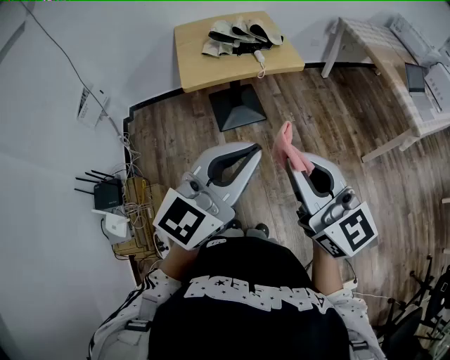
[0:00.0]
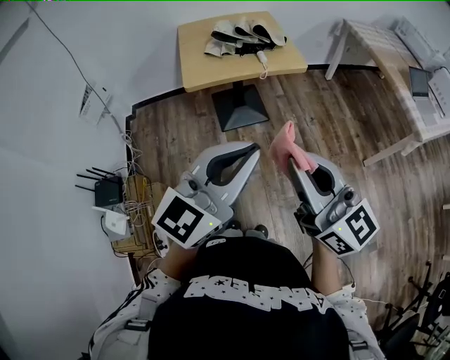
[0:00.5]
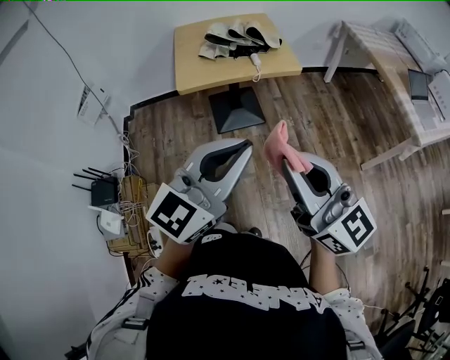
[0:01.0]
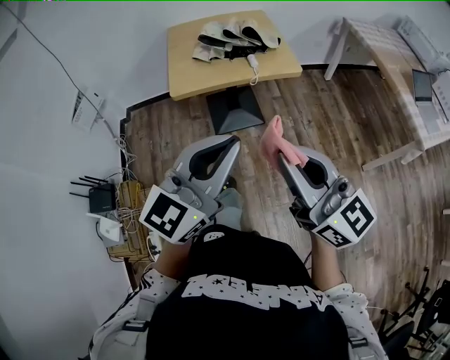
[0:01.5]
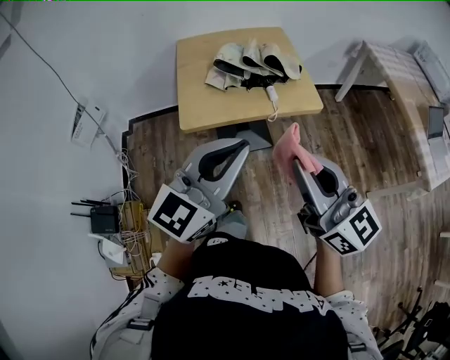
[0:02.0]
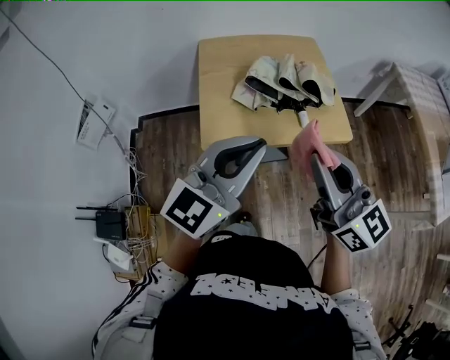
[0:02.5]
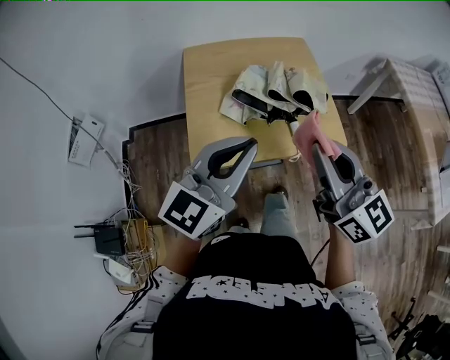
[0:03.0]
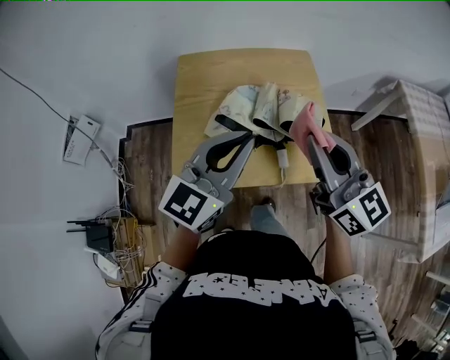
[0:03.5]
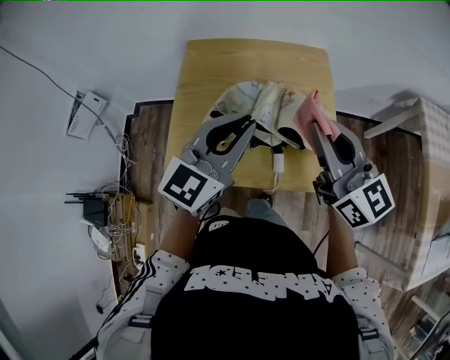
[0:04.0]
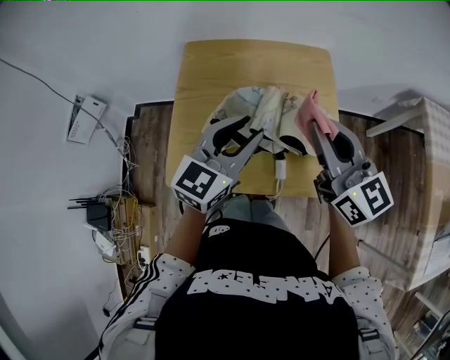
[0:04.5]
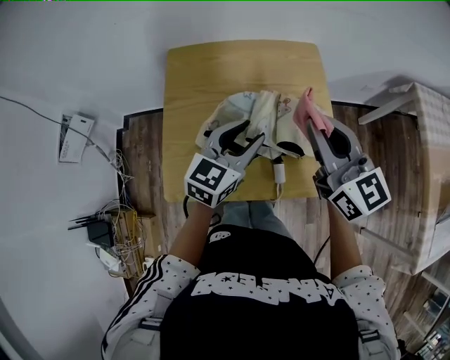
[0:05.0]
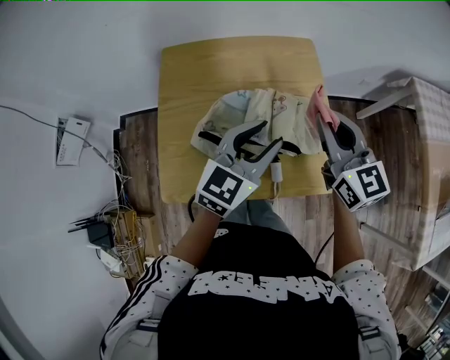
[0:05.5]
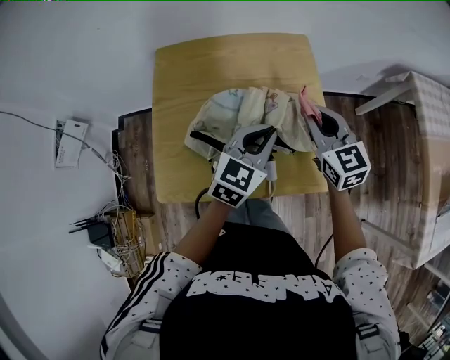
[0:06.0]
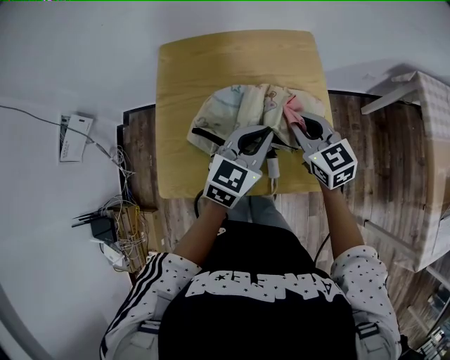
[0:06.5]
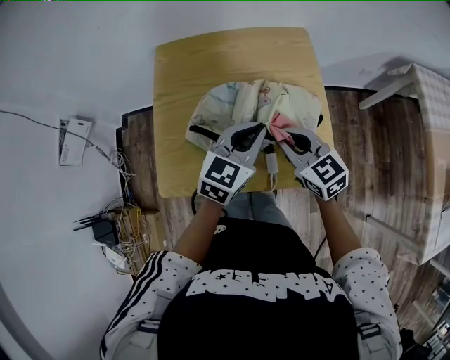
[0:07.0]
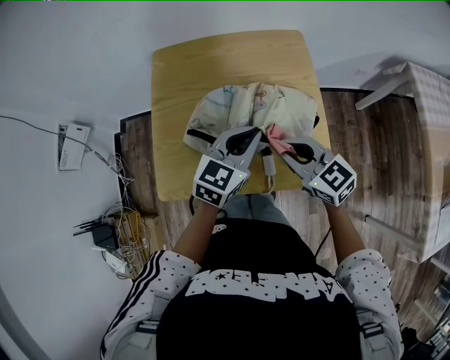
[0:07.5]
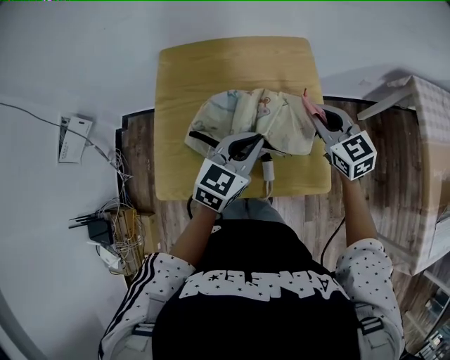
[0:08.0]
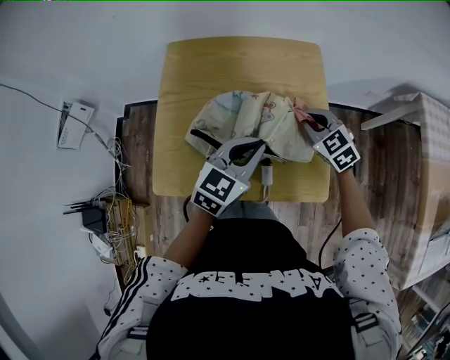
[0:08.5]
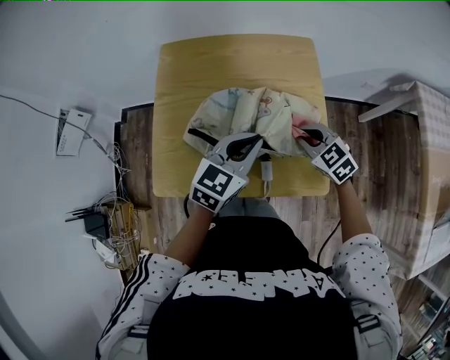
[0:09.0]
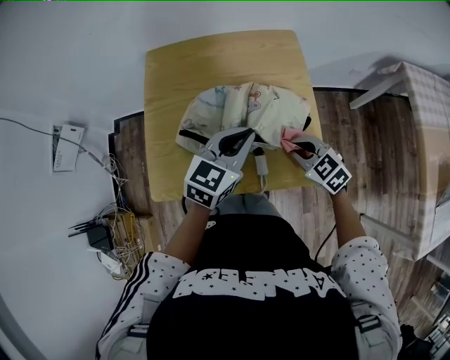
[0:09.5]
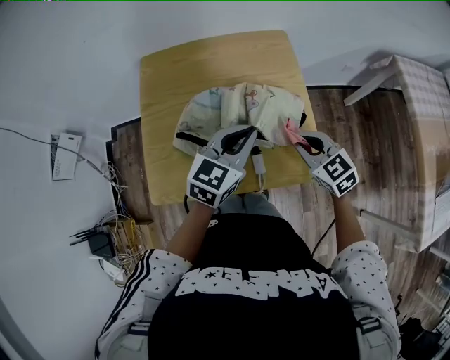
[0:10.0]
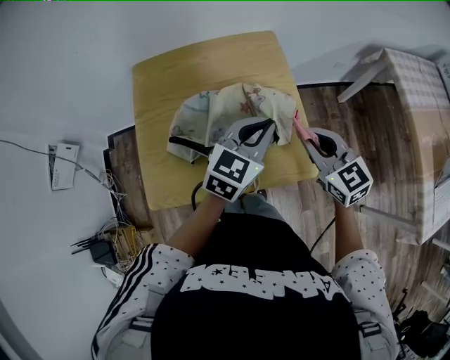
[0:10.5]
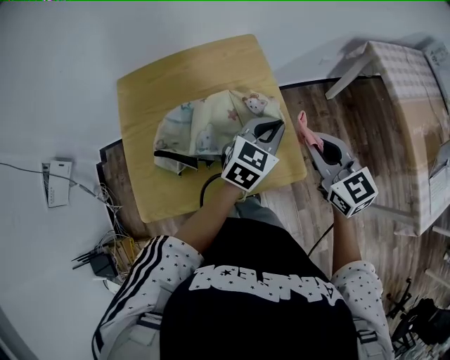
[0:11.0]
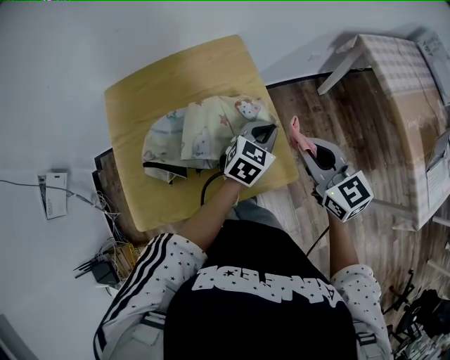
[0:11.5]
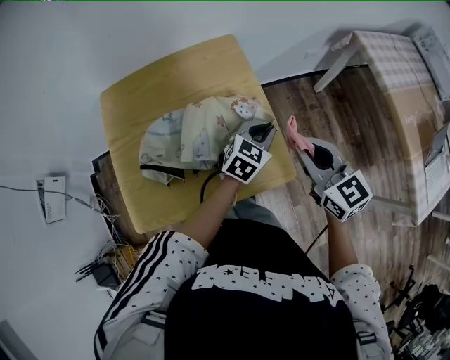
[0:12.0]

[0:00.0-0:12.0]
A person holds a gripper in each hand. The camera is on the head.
0:00.0 to 0:02.0: The two grippers go some 25 cm forward.
0:02.0 to 0:04.0: The two grippers go roughly 40 cm forward.
0:04.0 to 0:06.0: The left gripper travels downward, to the right and forward by about 15 cm, changes its angle by about 20 degrees, and opens and closes again; the right gripper is displaced downward and forward by roughly 20 cm, and swivels some 30 degrees.
0:06.0 to 0:08.0: The right gripper moves about 10 cm backward and comes back.
0:08.0 to 0:10.0: The right gripper heads backward and downward, covering about 10 cm.
0:10.0 to 0:12.0: The right gripper travels upward and to the right by some 15 cm, and rotates approximately 30 degrees, while the left gripper moves to the right and downward, about 20 cm, and turns by about 20 degrees.

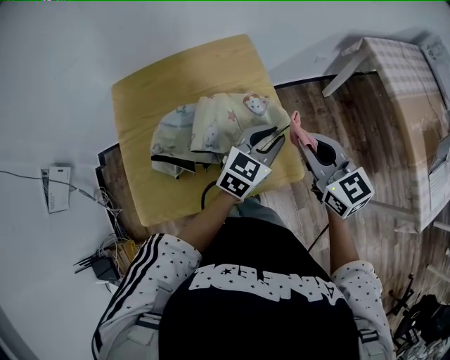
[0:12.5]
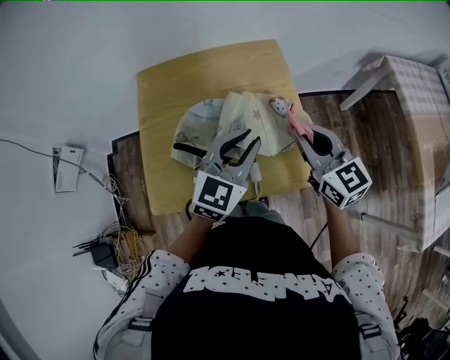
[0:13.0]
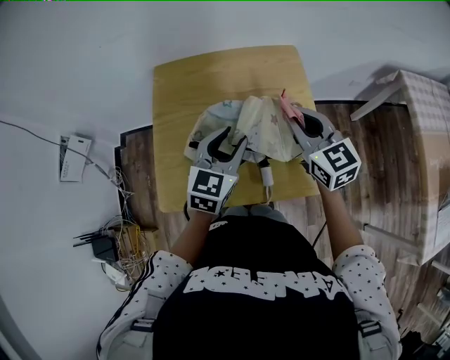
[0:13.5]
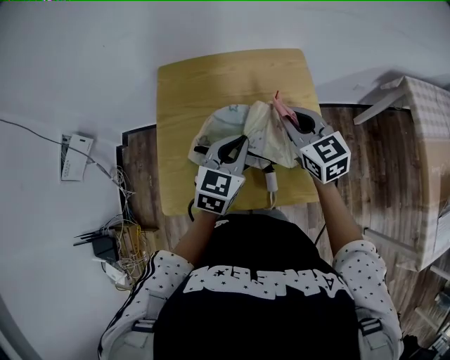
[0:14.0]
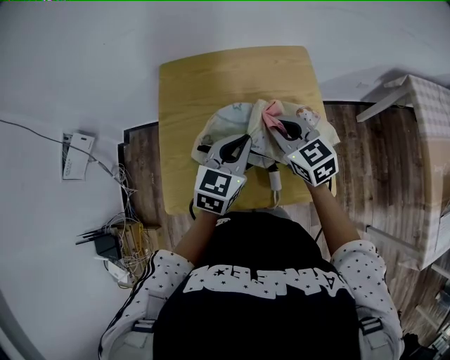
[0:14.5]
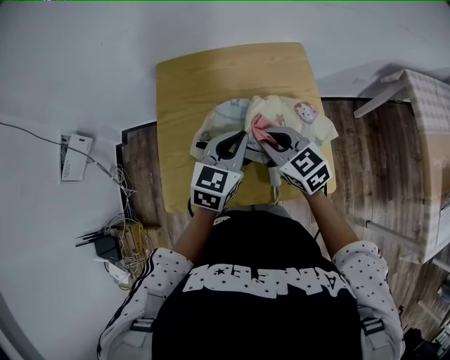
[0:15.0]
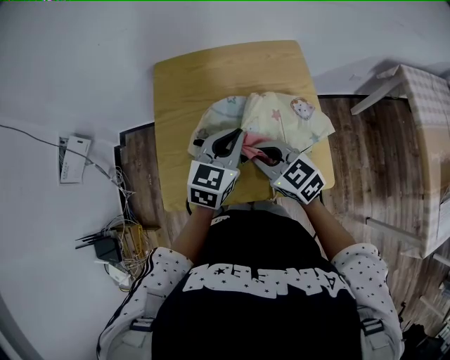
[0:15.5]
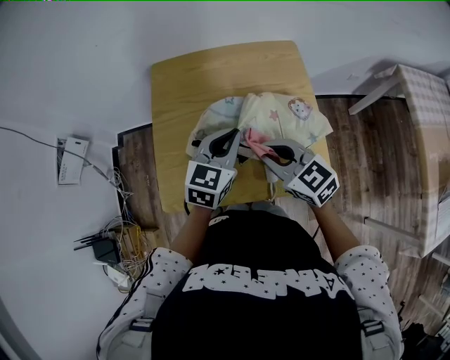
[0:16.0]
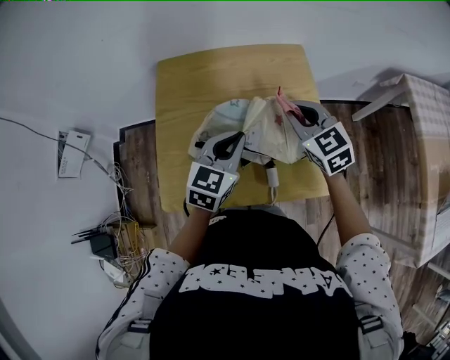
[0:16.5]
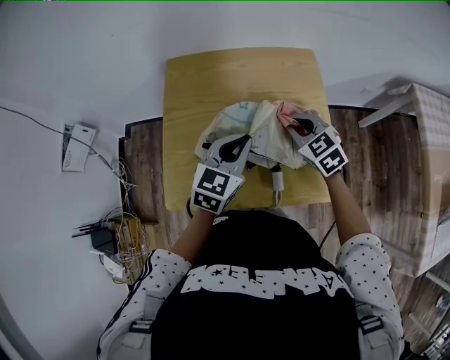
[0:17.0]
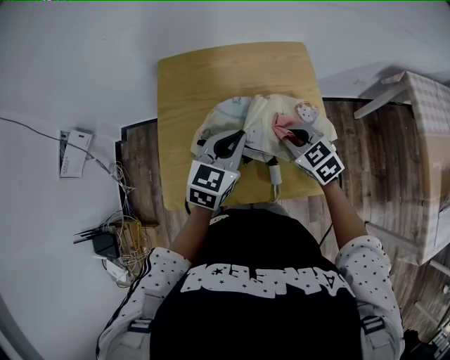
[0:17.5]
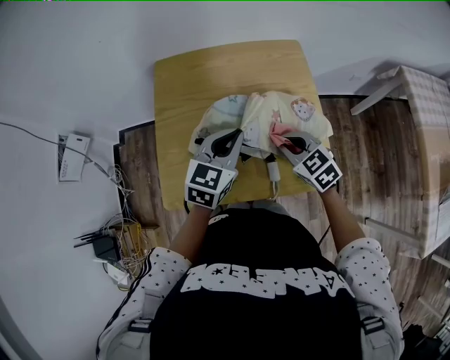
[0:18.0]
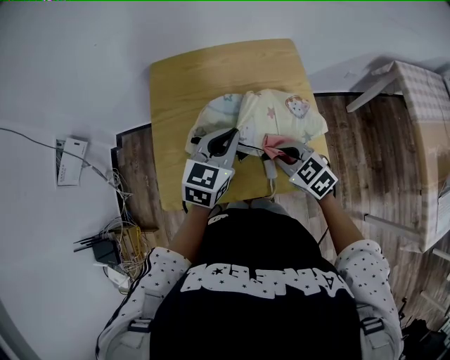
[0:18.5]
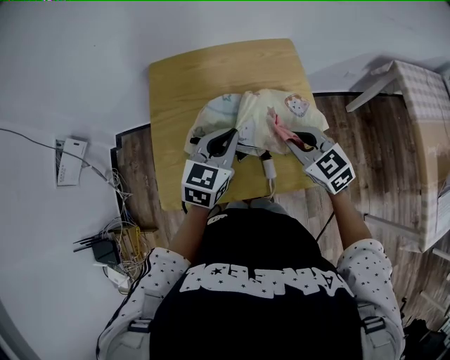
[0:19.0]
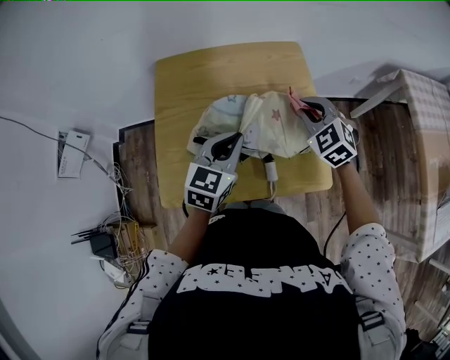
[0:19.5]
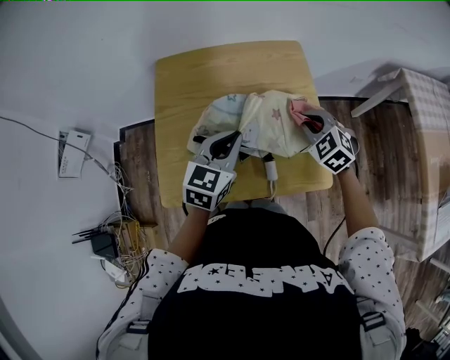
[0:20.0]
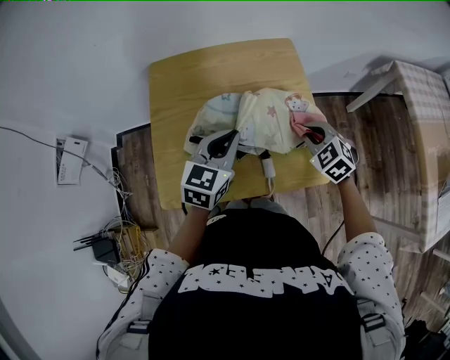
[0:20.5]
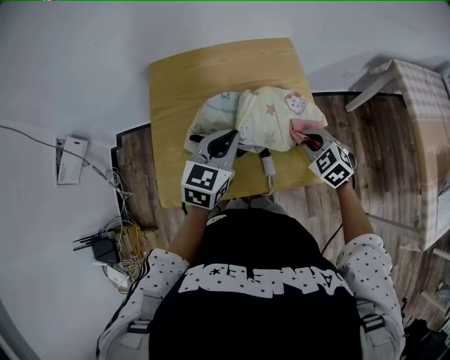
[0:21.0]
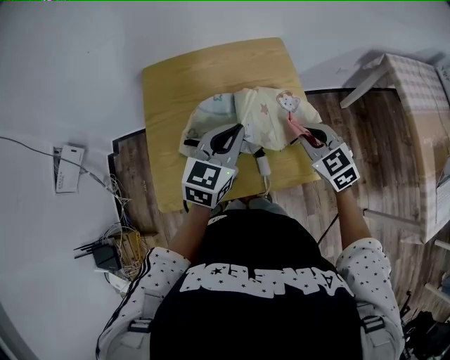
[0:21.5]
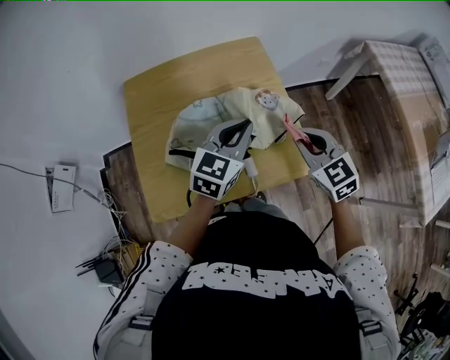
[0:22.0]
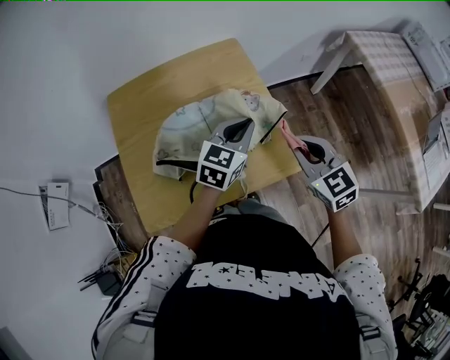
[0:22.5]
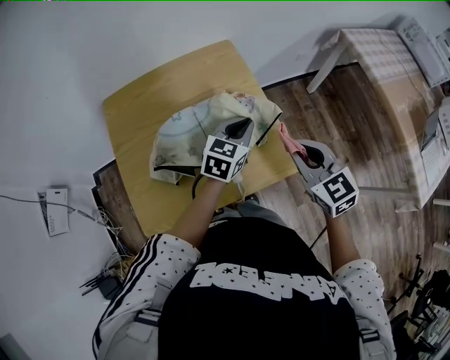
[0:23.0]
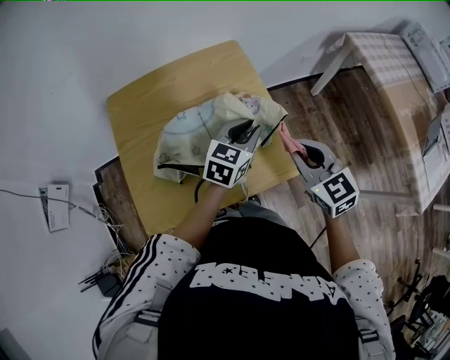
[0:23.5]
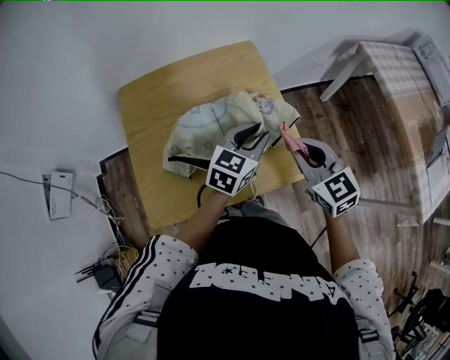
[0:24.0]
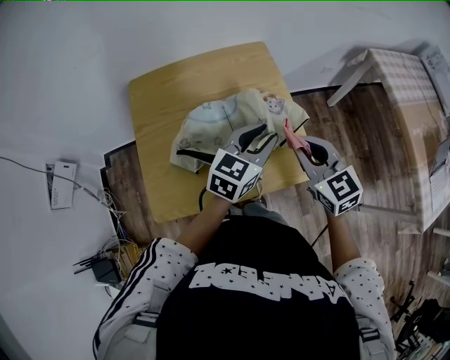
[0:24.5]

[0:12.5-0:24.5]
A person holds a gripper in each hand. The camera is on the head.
0:12.5 to 0:14.5: The left gripper heads to the left, covering approximately 20 cm, and swivels about 30 degrees. The right gripper travels to the left and forward by roughly 20 cm.
0:16.5 to 0:18.5: The right gripper is displaced backward and downward by roughly 15 cm.
0:18.5 to 0:20.5: The right gripper moves to the right and forward, roughly 10 cm, and swivels some 20 degrees.
0:20.5 to 0:22.5: The left gripper shifts roughly 15 cm to the right, while the right gripper shifts about 15 cm upward, backward and to the right, and rotates approximately 30 degrees.
0:22.5 to 0:24.5: The left gripper opens up. Meanwhile the right gripper is displaced to the left by approximately 5 cm.

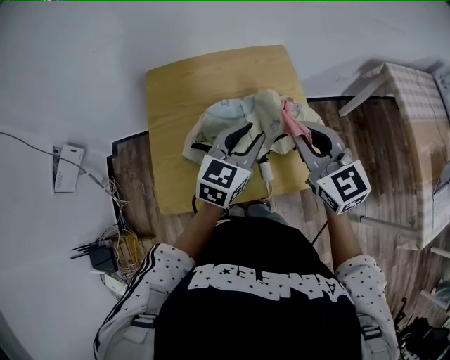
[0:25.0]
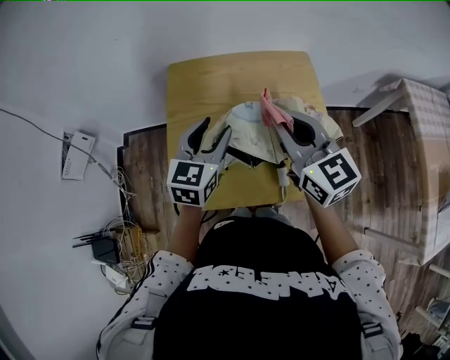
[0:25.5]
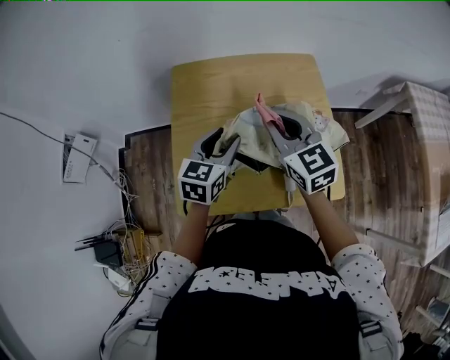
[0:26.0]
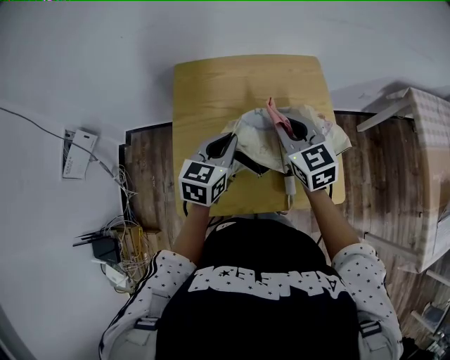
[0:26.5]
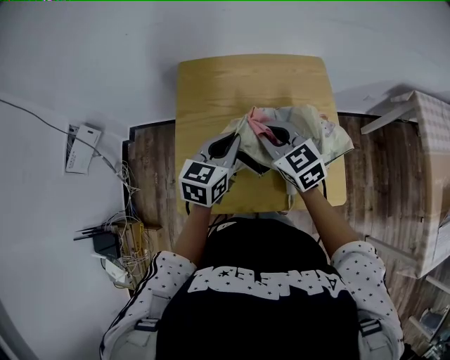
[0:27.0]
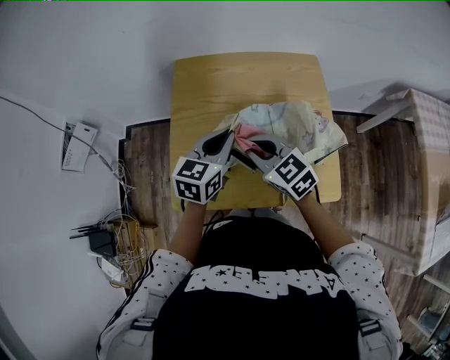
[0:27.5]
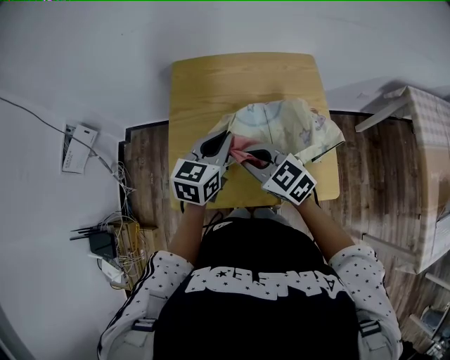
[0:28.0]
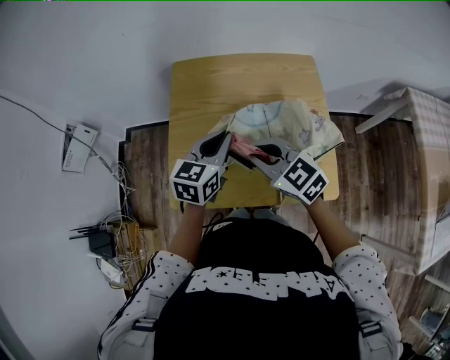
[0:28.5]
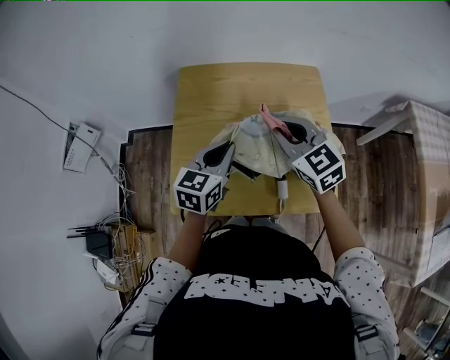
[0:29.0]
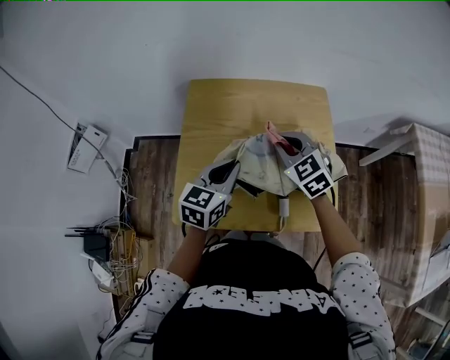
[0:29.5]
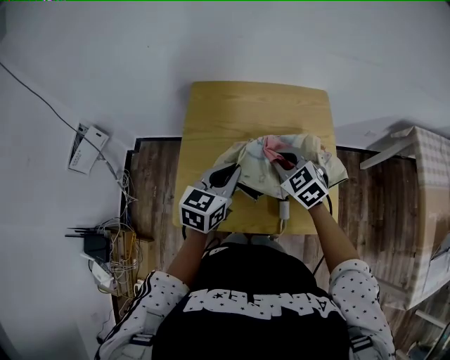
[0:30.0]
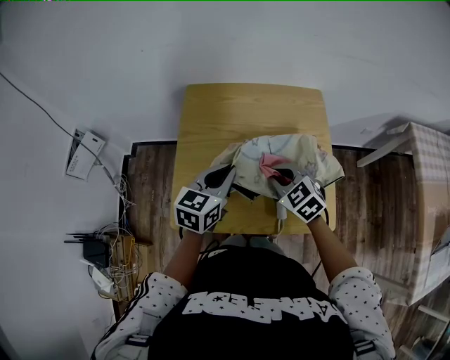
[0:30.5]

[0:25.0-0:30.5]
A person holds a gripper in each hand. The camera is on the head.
0:25.0 to 0:27.0: The left gripper shifts some 15 cm to the left, and closes up, while the right gripper shifts about 20 cm to the left, downward and forward.
0:27.0 to 0:28.5: The right gripper is displaced backward by roughly 10 cm.
0:28.5 to 0:30.5: The right gripper travels downward and to the right by some 10 cm.
